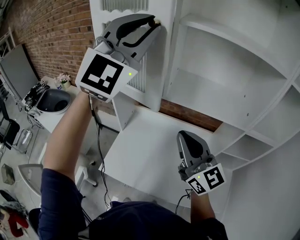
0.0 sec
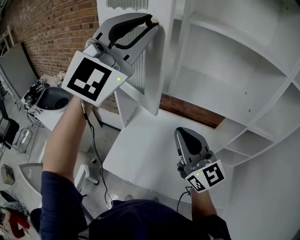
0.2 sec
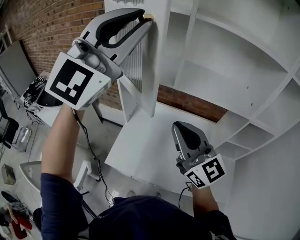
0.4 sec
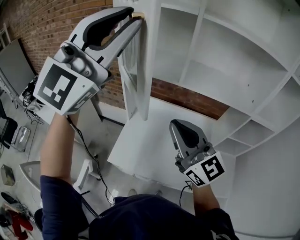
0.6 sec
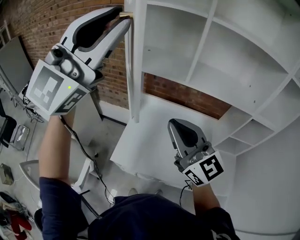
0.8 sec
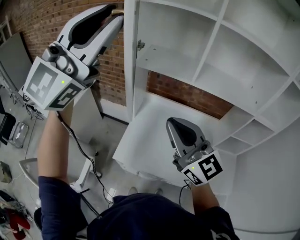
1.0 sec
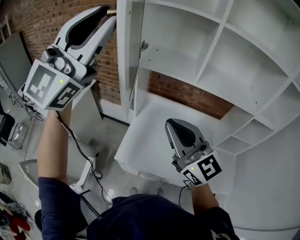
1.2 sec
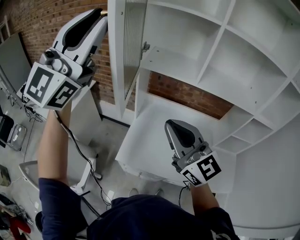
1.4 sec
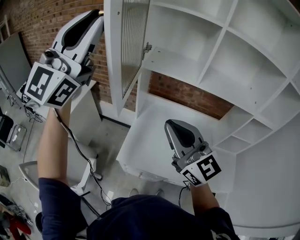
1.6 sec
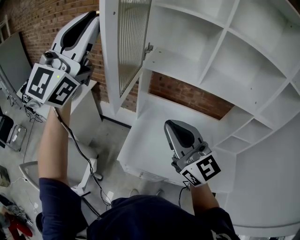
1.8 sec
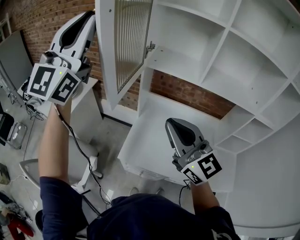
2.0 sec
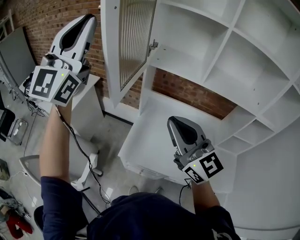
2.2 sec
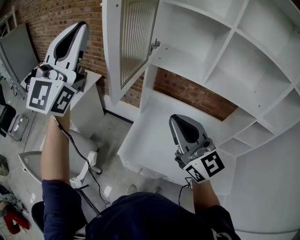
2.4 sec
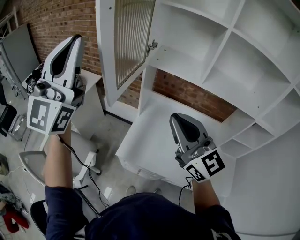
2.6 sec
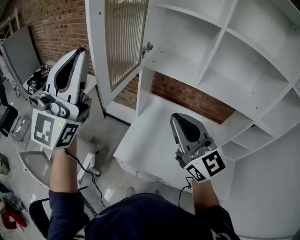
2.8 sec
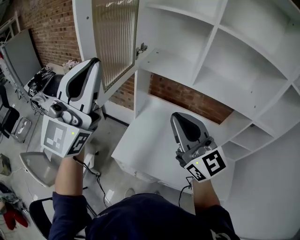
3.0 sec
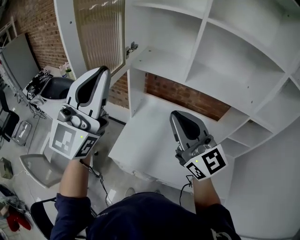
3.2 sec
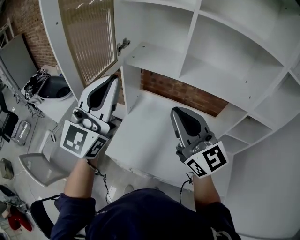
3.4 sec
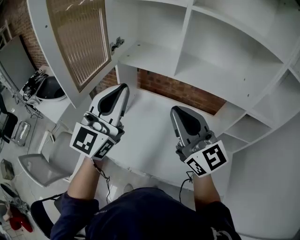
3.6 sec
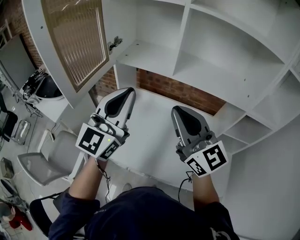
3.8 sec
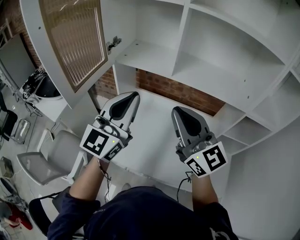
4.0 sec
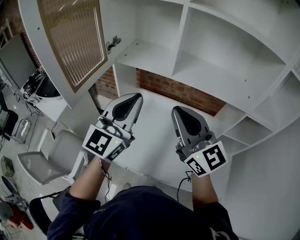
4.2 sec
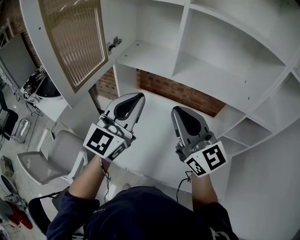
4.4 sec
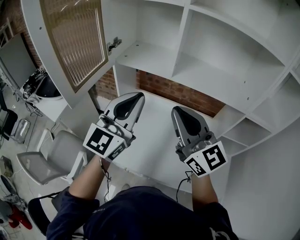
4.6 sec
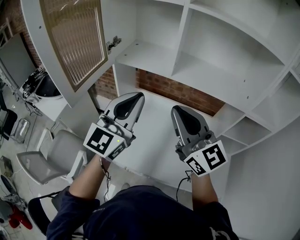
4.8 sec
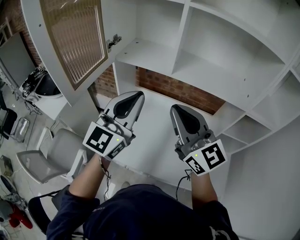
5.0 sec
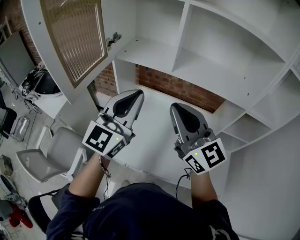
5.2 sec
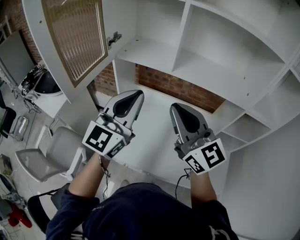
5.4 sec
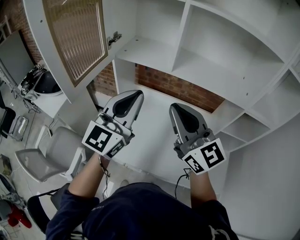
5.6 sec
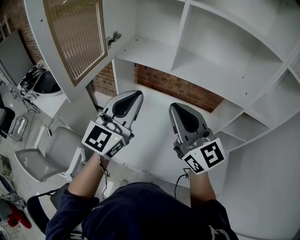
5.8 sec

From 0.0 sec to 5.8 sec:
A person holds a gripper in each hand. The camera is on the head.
From 0.0 sec to 1.4 sec: Both grippers move to the left and backward, roughly 30 cm. The left gripper rotates some 30 degrees.
From 1.4 sec to 2.8 sec: The left gripper goes approximately 10 cm downward and backward.
From 2.8 sec to 4.4 sec: The left gripper travels to the right and downward by roughly 30 cm, and turns by approximately 30 degrees. Meanwhile the right gripper travels to the right by approximately 15 cm.
From 4.4 sec to 5.8 sec: The grippers move only a little.

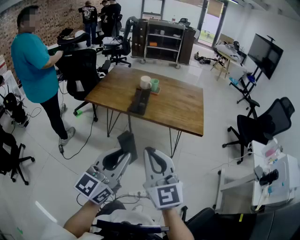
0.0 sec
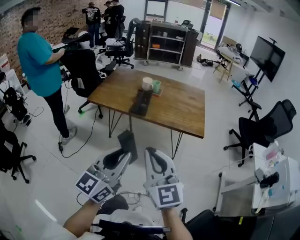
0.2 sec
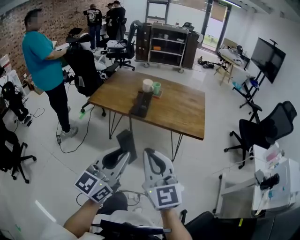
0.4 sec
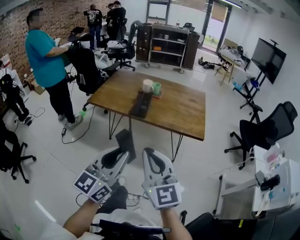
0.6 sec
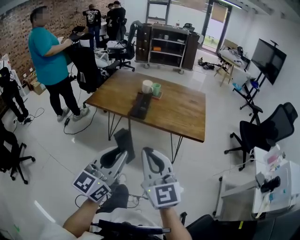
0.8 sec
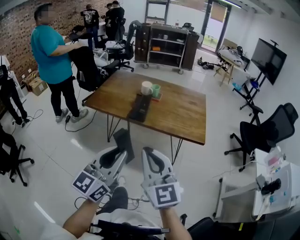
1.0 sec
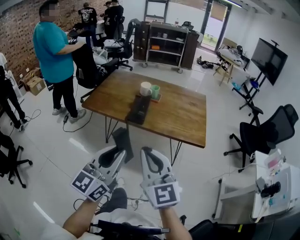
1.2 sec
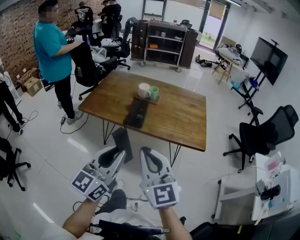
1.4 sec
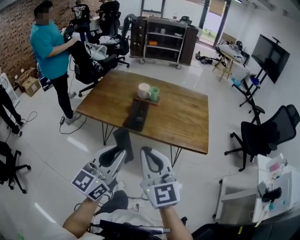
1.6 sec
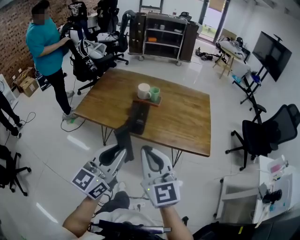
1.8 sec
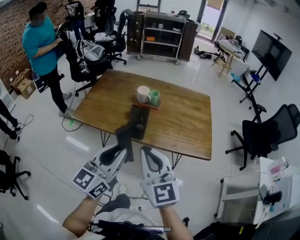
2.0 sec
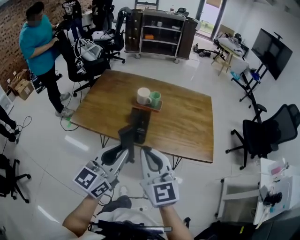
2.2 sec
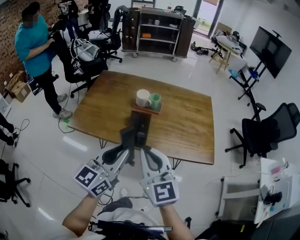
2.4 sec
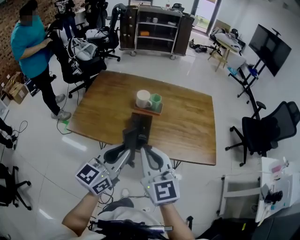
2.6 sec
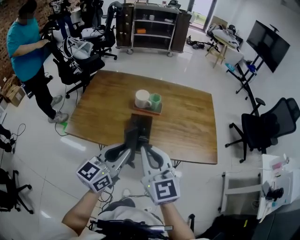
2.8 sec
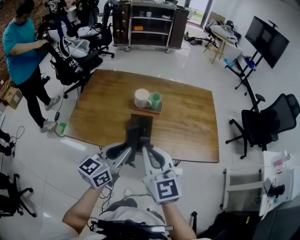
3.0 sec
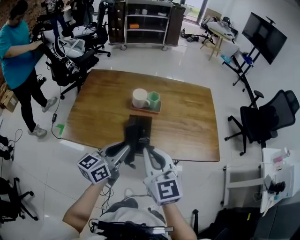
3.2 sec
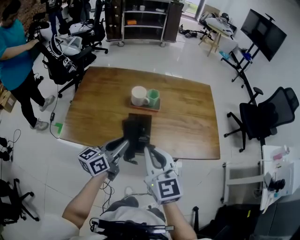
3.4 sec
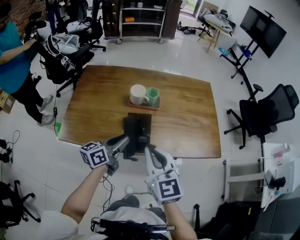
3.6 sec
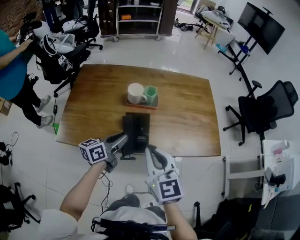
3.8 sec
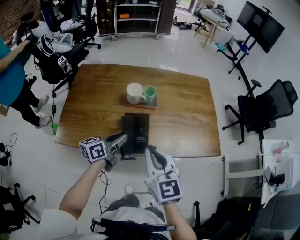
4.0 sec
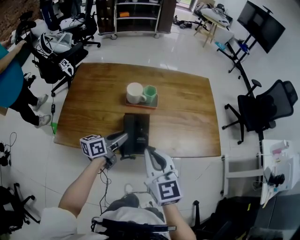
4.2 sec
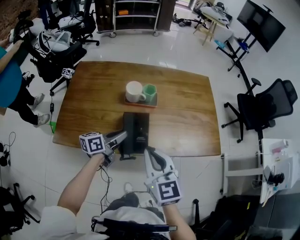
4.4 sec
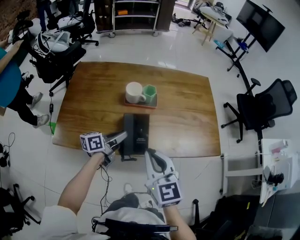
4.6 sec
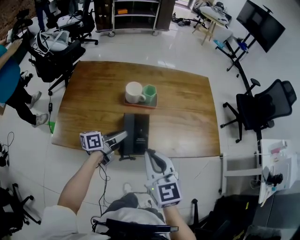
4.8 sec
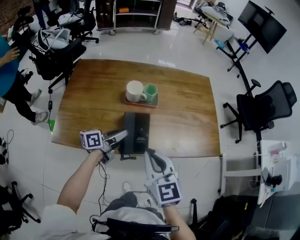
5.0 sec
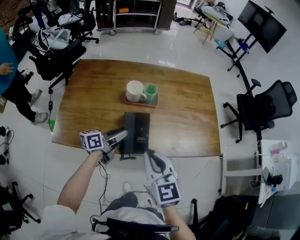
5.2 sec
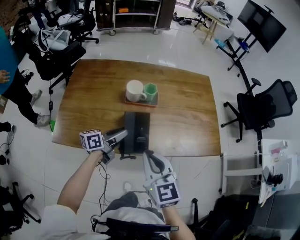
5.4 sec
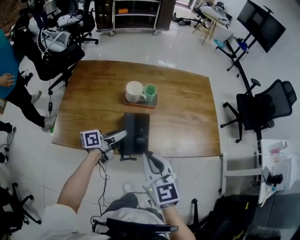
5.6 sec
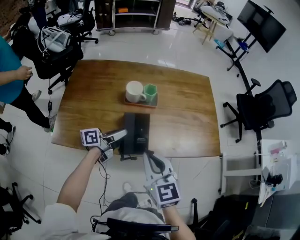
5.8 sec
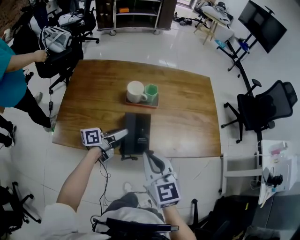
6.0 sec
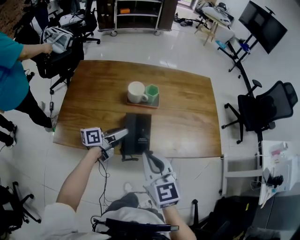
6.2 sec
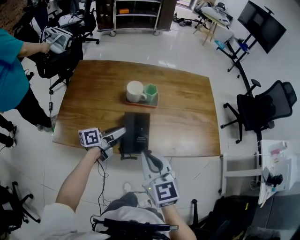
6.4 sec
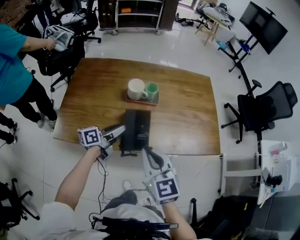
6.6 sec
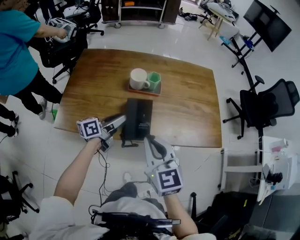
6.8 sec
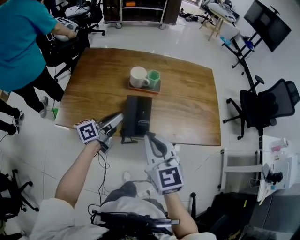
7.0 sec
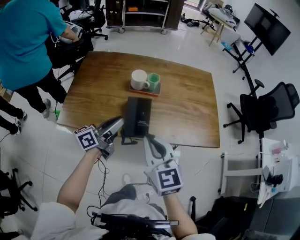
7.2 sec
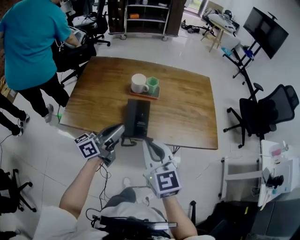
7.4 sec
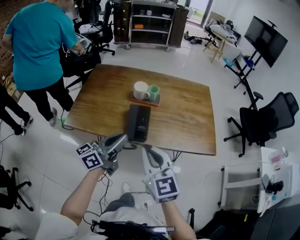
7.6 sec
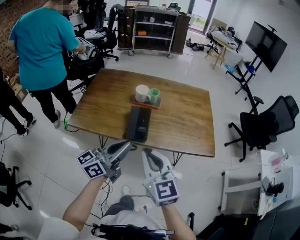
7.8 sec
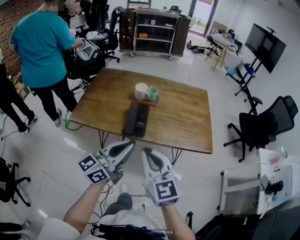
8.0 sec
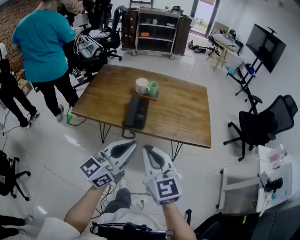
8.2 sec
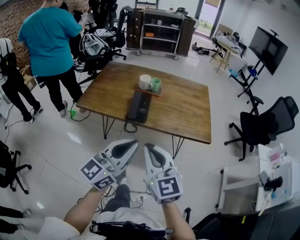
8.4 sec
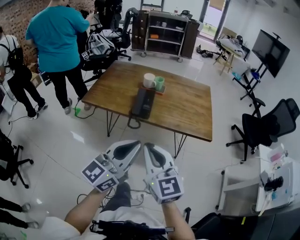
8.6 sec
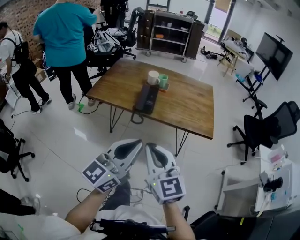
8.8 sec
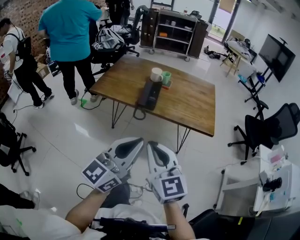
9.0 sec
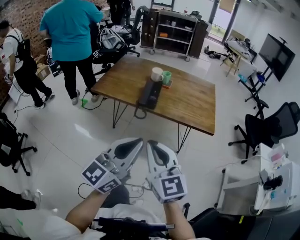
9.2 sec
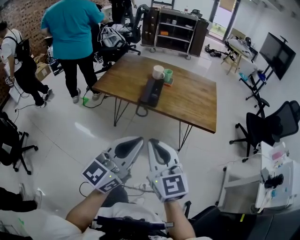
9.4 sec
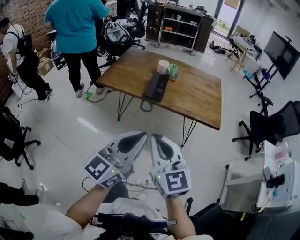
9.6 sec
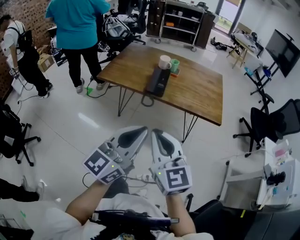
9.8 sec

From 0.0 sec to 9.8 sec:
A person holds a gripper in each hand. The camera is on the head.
From 0.0 sec to 1.4 sec: Both grippers move forward, about 10 cm.
From 1.4 sec to 2.8 sec: The grippers both shift forward by approximately 25 cm.
From 2.8 sec to 4.2 sec: The left gripper heads downward and forward, covering approximately 25 cm, and swivels roughly 30 degrees. Meanwhile the right gripper is displaced downward and forward by roughly 10 cm.
From 4.2 sec to 5.6 sec: The grippers move only a little.
From 5.6 sec to 7.0 sec: The left gripper goes about 5 cm upward.
From 7.0 sec to 8.4 sec: The right gripper heads backward, covering about 20 cm; the left gripper travels backward, upward and to the right by approximately 40 cm, and rolls clockwise, seen from behind, by approximately 40 degrees.
From 8.4 sec to 9.8 sec: Both grippers travel together backward, about 15 cm.

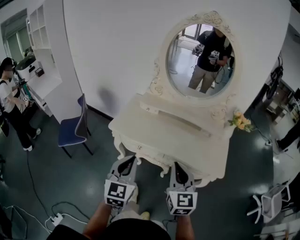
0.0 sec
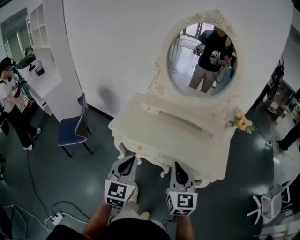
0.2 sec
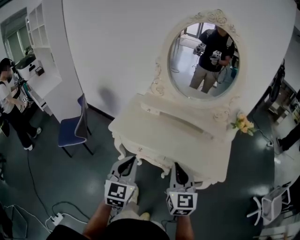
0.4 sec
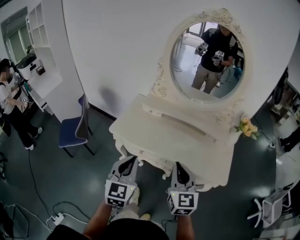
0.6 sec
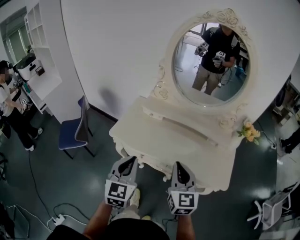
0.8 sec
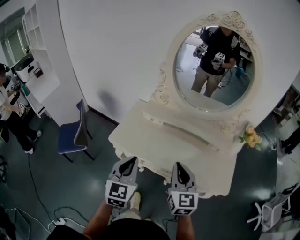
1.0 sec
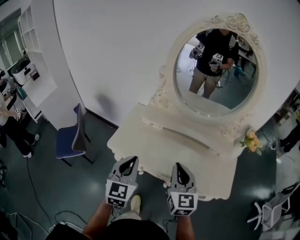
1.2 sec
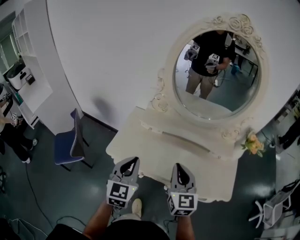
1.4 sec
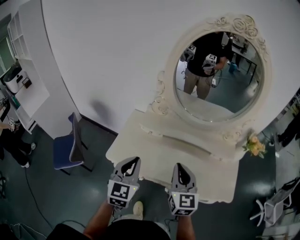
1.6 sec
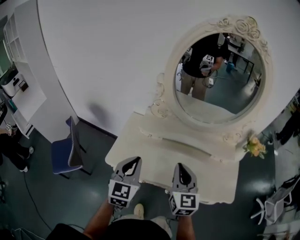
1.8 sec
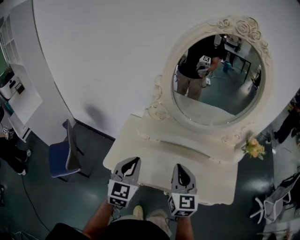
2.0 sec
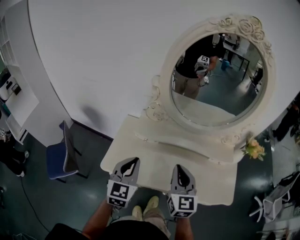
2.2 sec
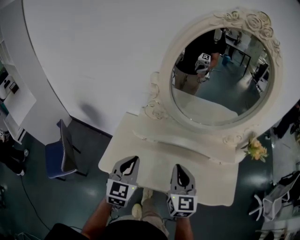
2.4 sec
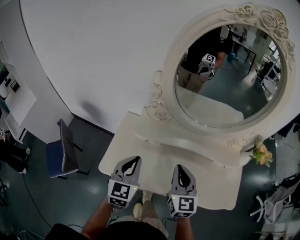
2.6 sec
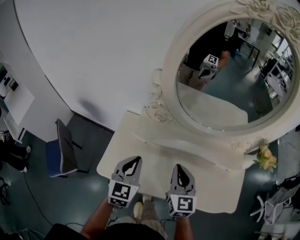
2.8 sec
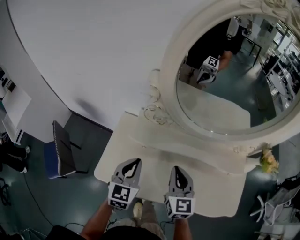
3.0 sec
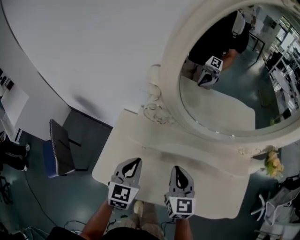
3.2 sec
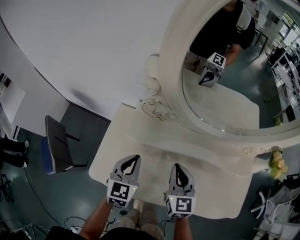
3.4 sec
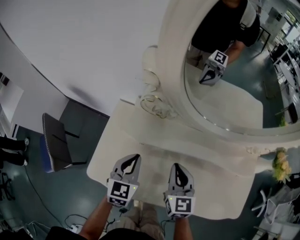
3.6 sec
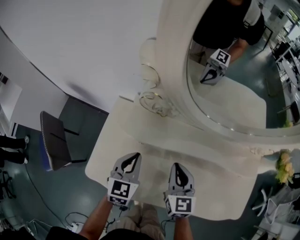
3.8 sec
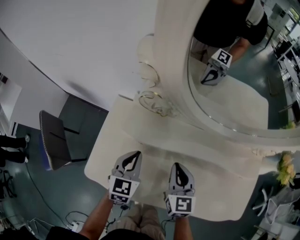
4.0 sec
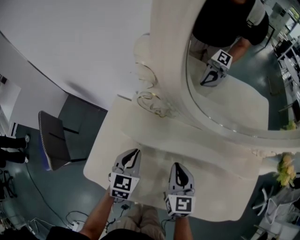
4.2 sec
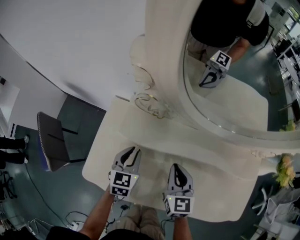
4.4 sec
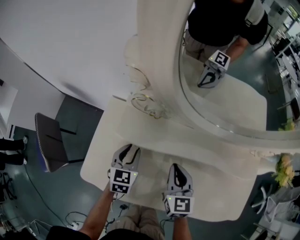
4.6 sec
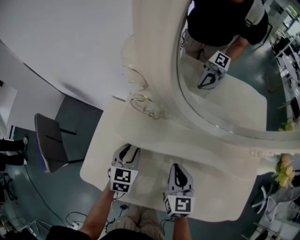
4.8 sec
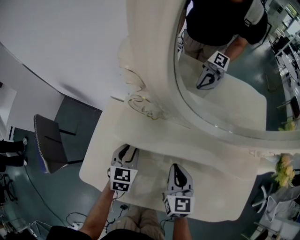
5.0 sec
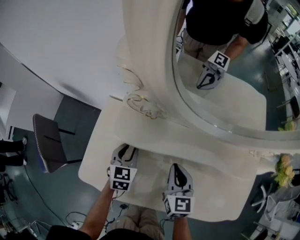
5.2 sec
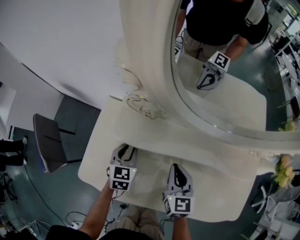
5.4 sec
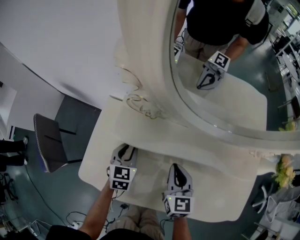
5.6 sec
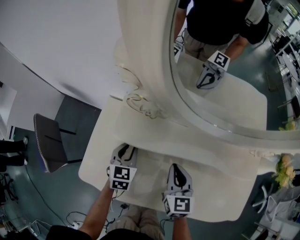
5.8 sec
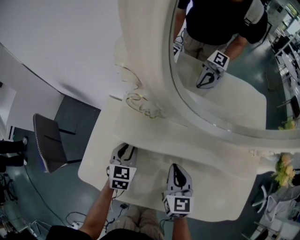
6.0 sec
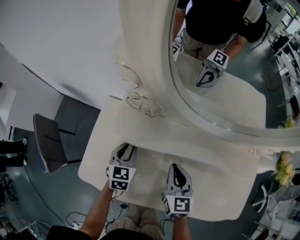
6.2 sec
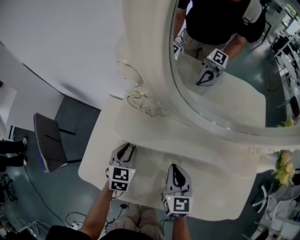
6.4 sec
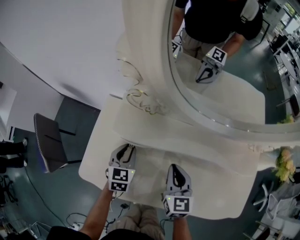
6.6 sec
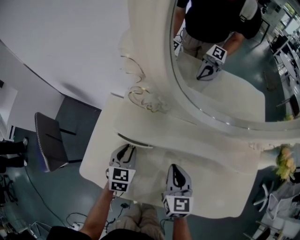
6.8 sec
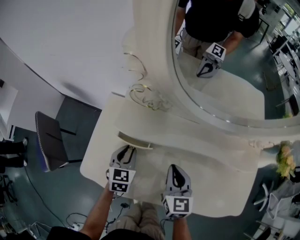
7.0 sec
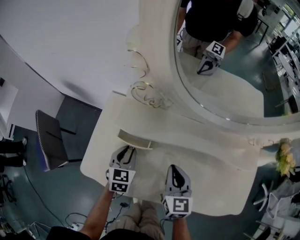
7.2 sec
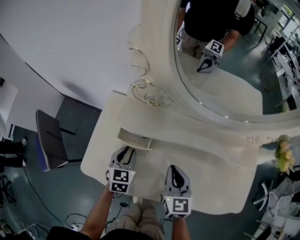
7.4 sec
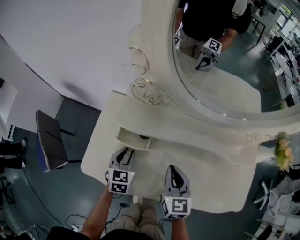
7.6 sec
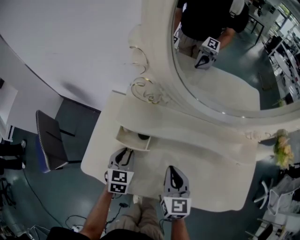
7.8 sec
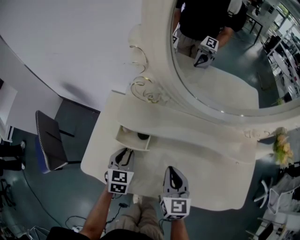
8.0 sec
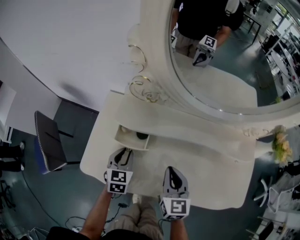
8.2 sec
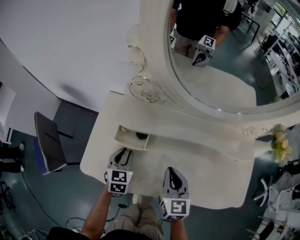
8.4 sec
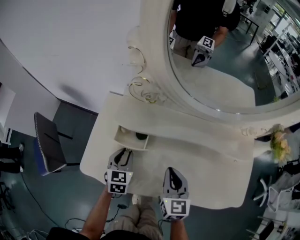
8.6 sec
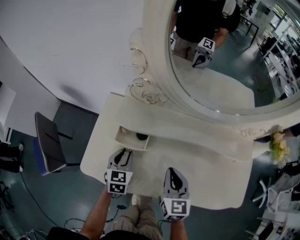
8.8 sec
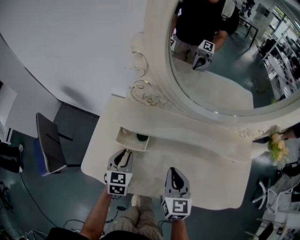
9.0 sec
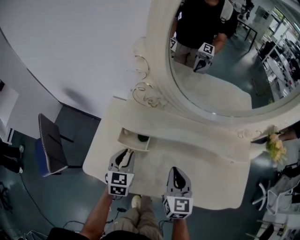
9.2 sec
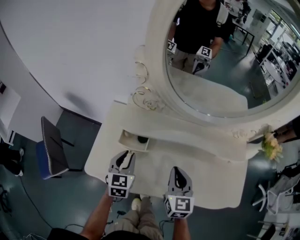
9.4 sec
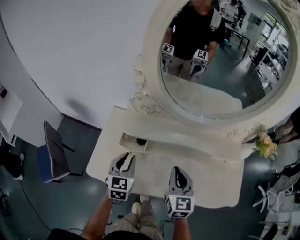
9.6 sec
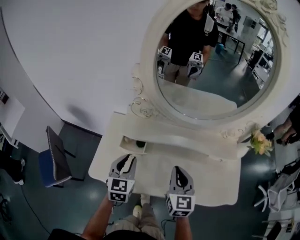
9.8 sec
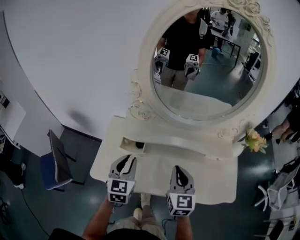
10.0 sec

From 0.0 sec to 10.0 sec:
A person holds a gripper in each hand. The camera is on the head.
From 0.0 sec to 1.4 sec: The grippers both shift forward by roughly 20 cm.
From 1.4 sec to 2.8 sec: Both grippers move forward and downward, about 20 cm.
From 2.8 sec to 4.2 sec: The two grippers go roughly 20 cm downward and forward.
From 4.2 sec to 5.8 sec: The left gripper changes place by some 5 cm, and opens up.
From 5.8 sec to 7.2 sec: The left gripper moves backward, approximately 5 cm.
From 7.2 sec to 8.6 sec: There are only small adjustments of the grippers.
From 8.6 sec to 10.0 sec: Both grippers move upward, roughly 20 cm.
